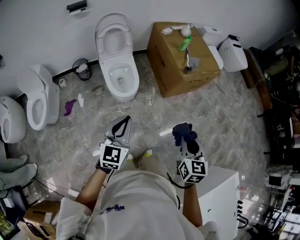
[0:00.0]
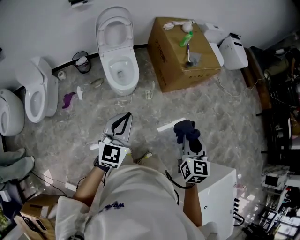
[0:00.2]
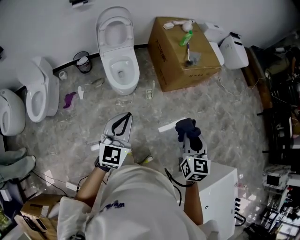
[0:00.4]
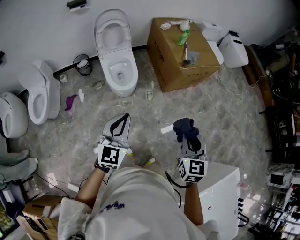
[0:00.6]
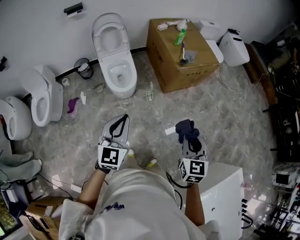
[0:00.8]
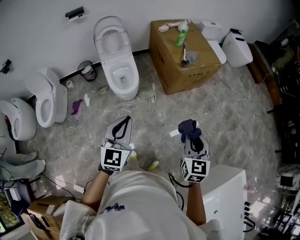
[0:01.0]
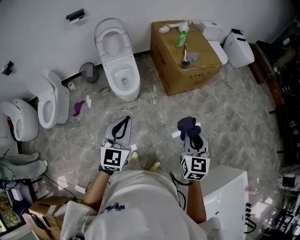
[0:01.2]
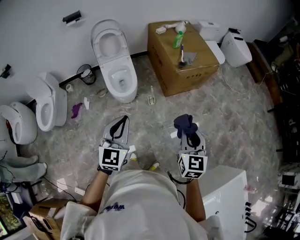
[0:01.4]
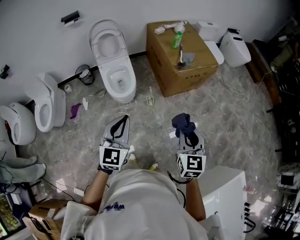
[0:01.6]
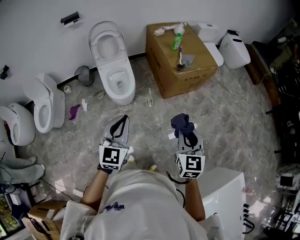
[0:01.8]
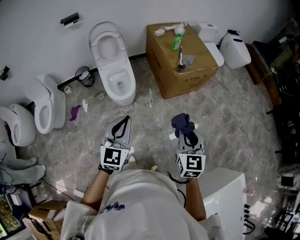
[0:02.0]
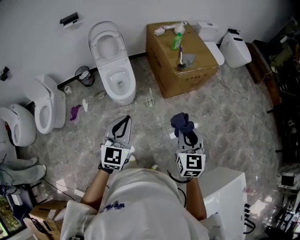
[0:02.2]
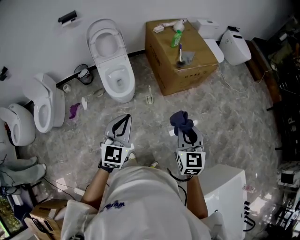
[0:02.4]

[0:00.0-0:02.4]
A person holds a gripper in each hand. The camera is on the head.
0:00.0 to 0:01.2: The two grippers go roughly 10 cm to the right.
0:01.2 to 0:02.4: The left gripper changes place by some 5 cm; the right gripper ends up approximately 5 cm from where it was.

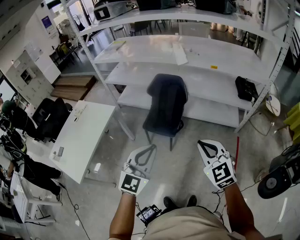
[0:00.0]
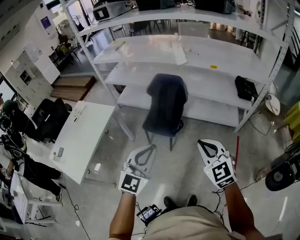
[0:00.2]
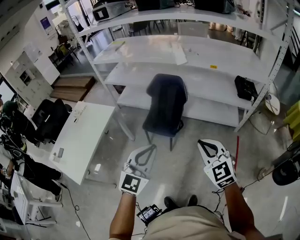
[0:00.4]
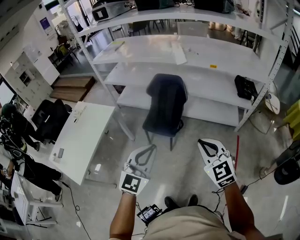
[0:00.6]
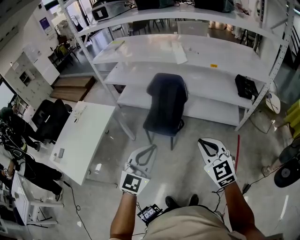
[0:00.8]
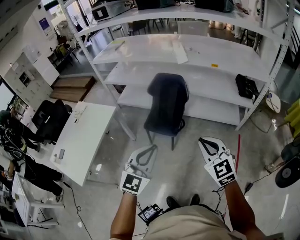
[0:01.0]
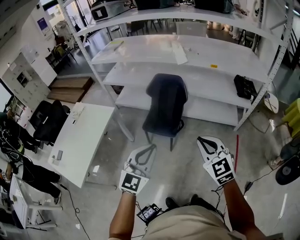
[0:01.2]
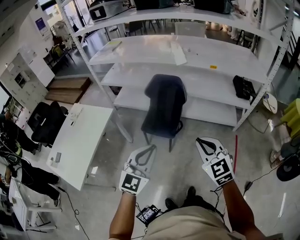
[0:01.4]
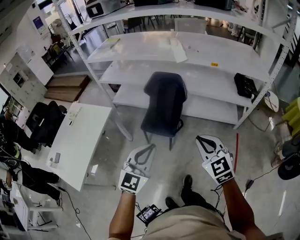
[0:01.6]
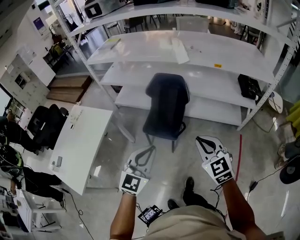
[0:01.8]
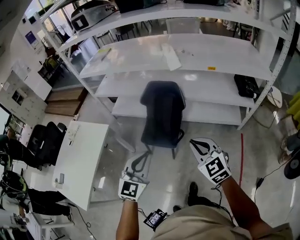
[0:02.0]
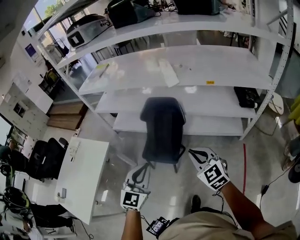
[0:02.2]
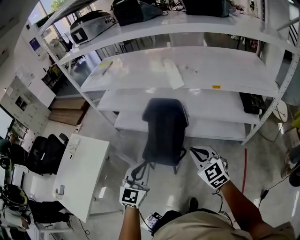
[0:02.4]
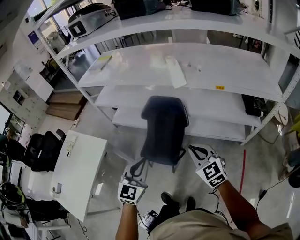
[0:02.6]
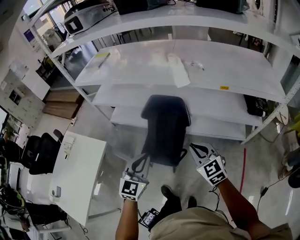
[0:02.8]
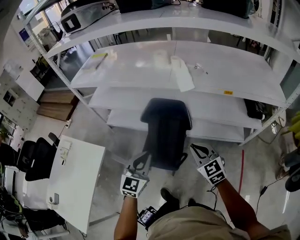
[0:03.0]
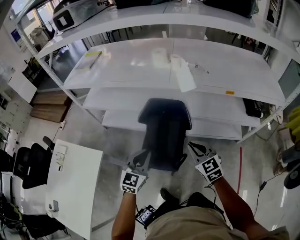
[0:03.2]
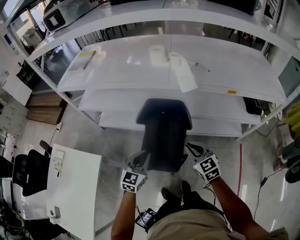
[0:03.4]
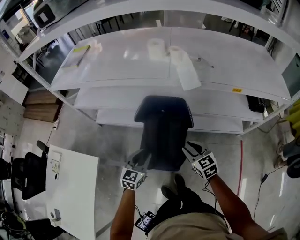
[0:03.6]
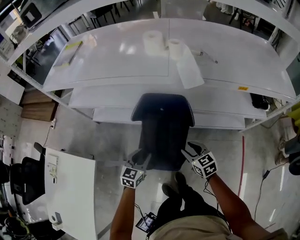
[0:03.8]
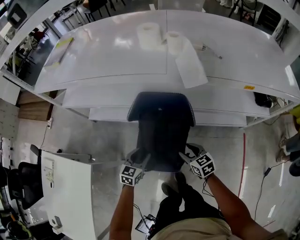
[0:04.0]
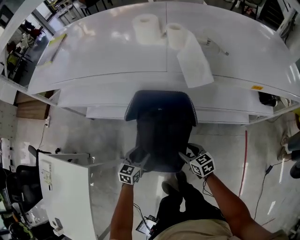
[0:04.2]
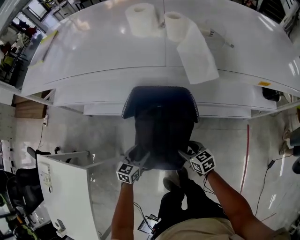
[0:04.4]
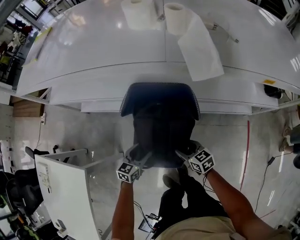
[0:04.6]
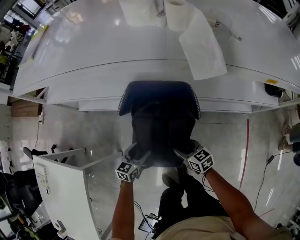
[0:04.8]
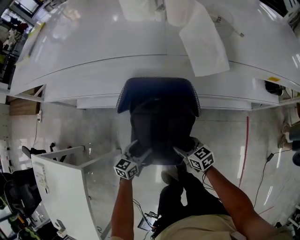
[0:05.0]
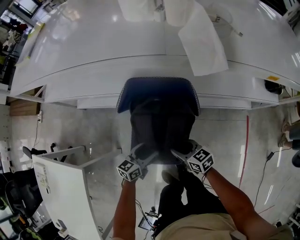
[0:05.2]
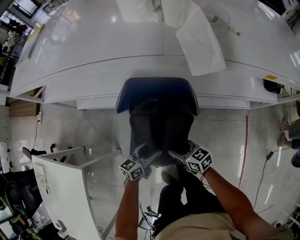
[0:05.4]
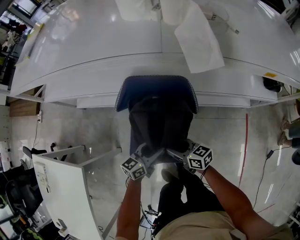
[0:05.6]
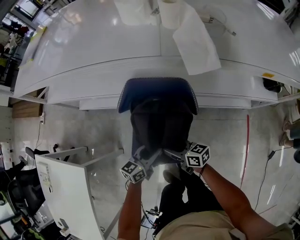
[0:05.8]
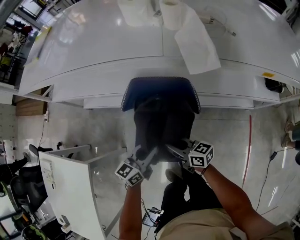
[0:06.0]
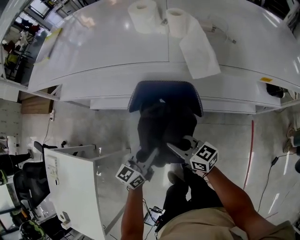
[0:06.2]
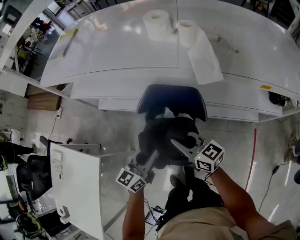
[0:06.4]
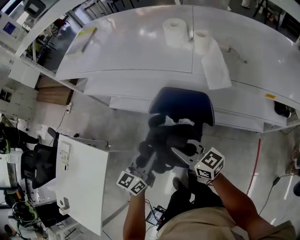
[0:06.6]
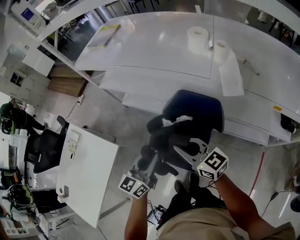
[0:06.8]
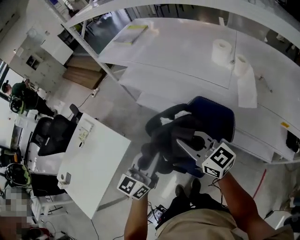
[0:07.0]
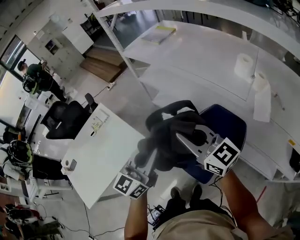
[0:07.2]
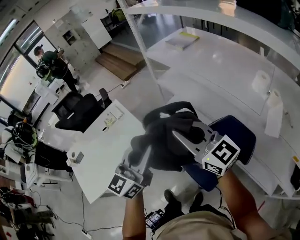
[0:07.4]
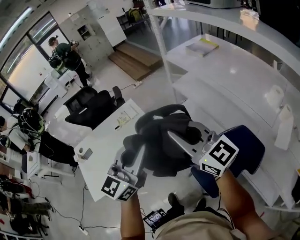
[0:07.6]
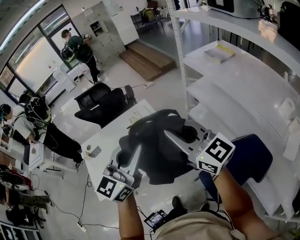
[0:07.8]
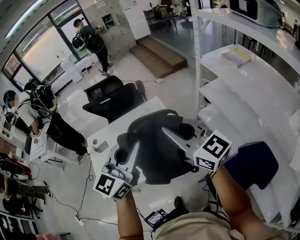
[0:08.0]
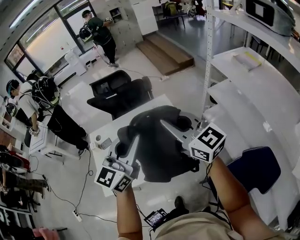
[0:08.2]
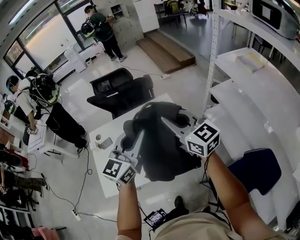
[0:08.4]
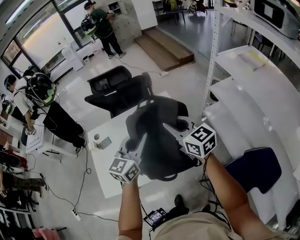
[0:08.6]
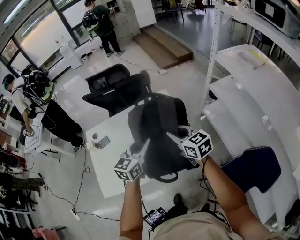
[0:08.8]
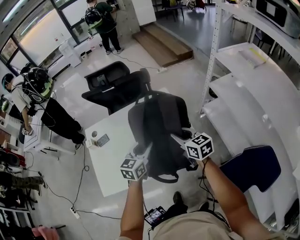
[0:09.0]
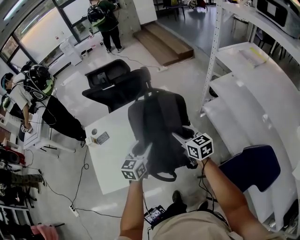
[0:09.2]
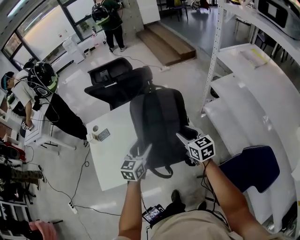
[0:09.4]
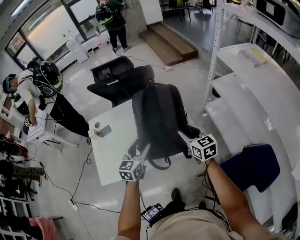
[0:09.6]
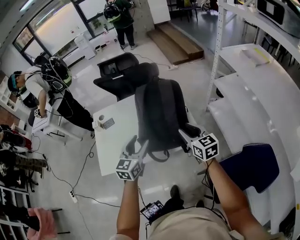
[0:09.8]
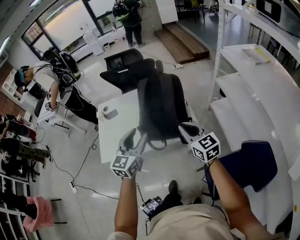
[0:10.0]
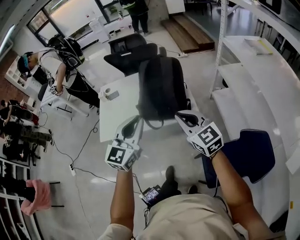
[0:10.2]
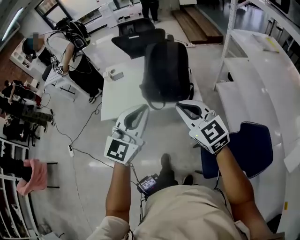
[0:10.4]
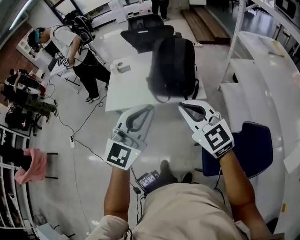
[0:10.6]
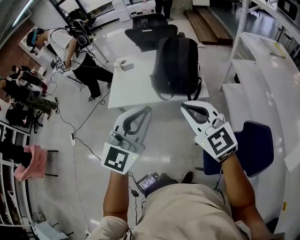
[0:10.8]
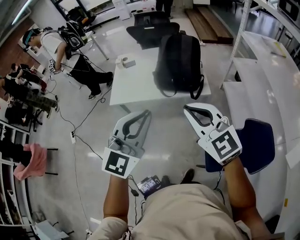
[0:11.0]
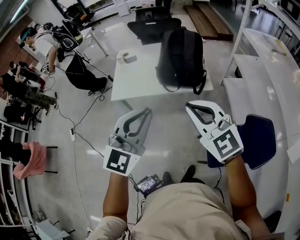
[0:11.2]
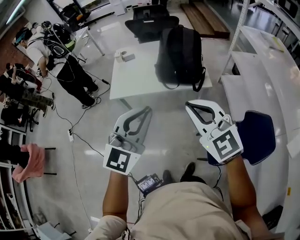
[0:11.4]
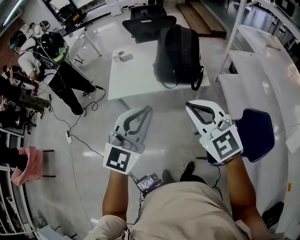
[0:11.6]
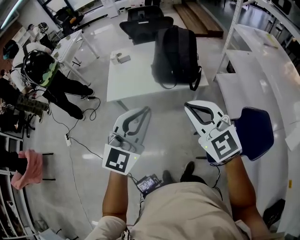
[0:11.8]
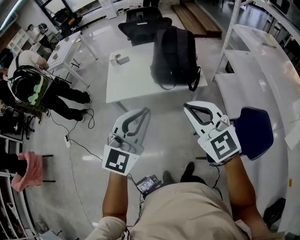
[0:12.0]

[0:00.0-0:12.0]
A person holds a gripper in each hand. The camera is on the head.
0:00.0 to 0:01.6: Both grippers move forward, roughly 5 cm.
0:01.6 to 0:03.0: The grippers both shift forward by about 35 cm.
0:03.0 to 0:04.4: The two grippers go some 40 cm downward and forward. The left gripper rotates about 30 degrees, and opens its fingers, while the right gripper rotates some 40 degrees, and opens.
0:04.4 to 0:06.0: The left gripper goes approximately 10 cm upward, rotates about 20 degrees, and closes; the right gripper heads to the left and upward, covering about 10 cm, swivels approximately 30 degrees, and closes its fingers.
0:06.0 to 0:07.6: The two grippers travel together, some 40 cm. Both grippers move upward, roughly 50 cm. The right gripper swivels approximately 60 degrees. The left gripper rotates roughly 70 degrees.
0:07.6 to 0:09.0: The right gripper moves downward, forward and to the left, about 40 cm, and turns by some 30 degrees. Meanwhile the left gripper is displaced downward, to the left and forward by approximately 40 cm, and swivels roughly 40 degrees.
0:09.0 to 0:10.4: Both grippers move backward and upward, roughly 40 cm. The left gripper swivels roughly 40 degrees, and opens, then closes once more, while the right gripper turns by roughly 40 degrees.
0:10.4 to 0:12.0: Both grippers move backward and to the left, roughly 15 cm.

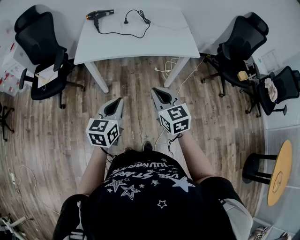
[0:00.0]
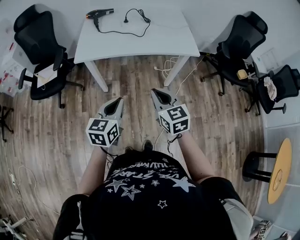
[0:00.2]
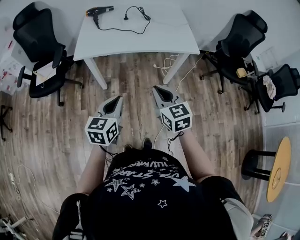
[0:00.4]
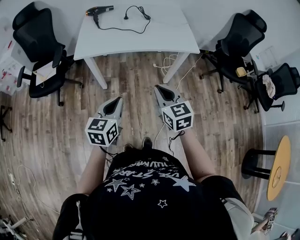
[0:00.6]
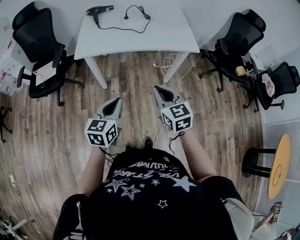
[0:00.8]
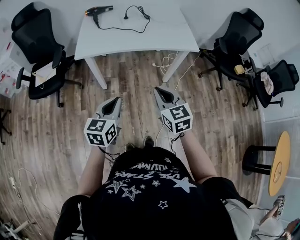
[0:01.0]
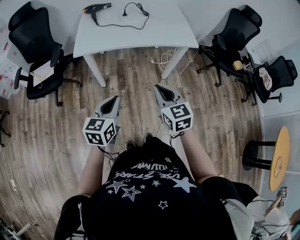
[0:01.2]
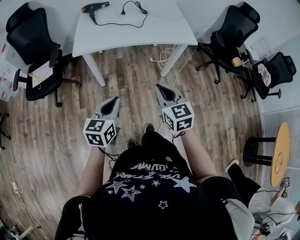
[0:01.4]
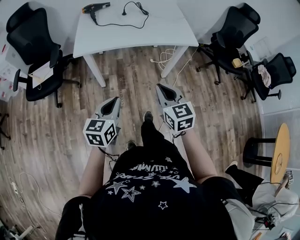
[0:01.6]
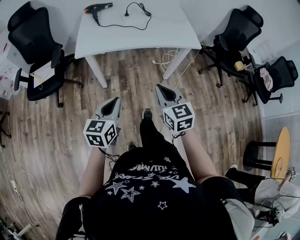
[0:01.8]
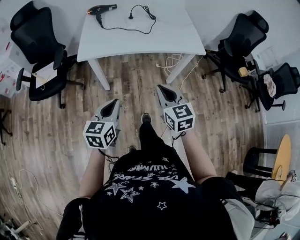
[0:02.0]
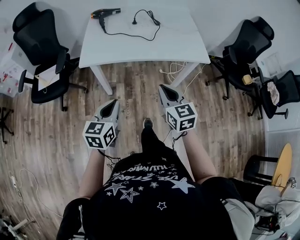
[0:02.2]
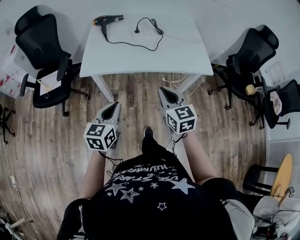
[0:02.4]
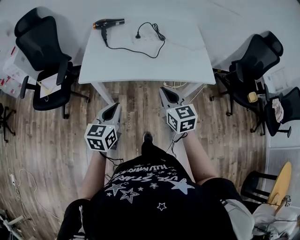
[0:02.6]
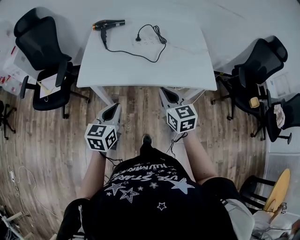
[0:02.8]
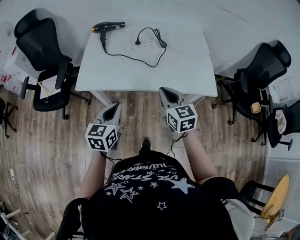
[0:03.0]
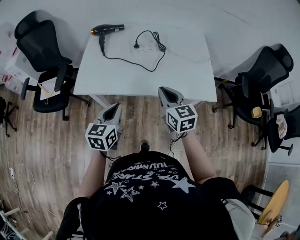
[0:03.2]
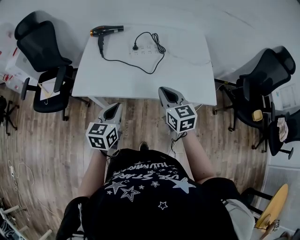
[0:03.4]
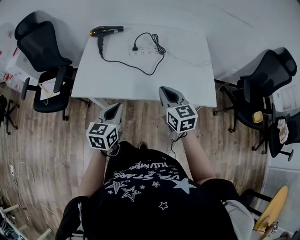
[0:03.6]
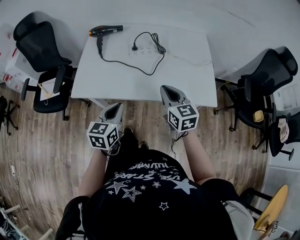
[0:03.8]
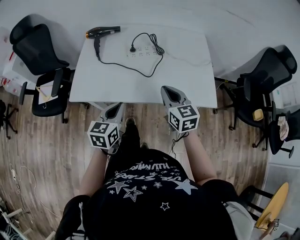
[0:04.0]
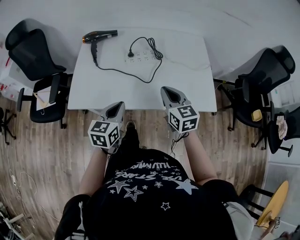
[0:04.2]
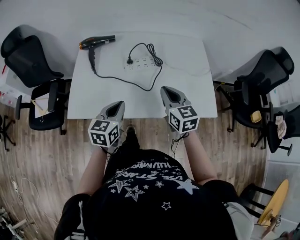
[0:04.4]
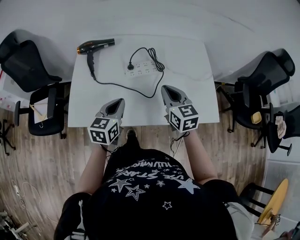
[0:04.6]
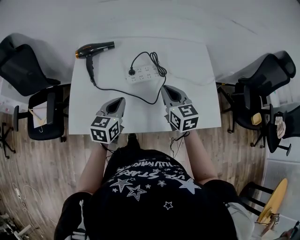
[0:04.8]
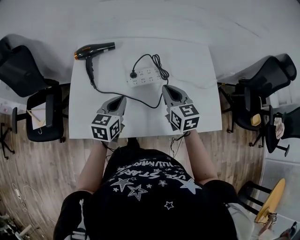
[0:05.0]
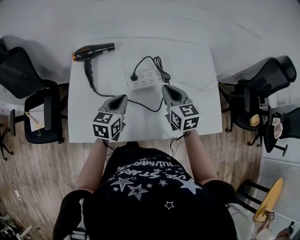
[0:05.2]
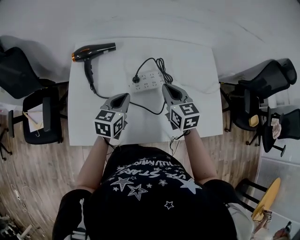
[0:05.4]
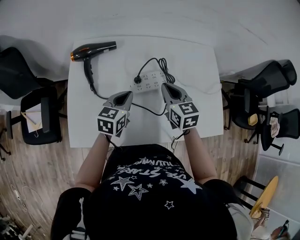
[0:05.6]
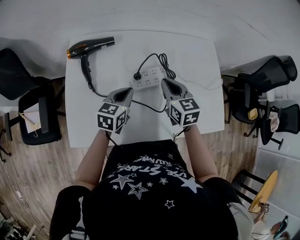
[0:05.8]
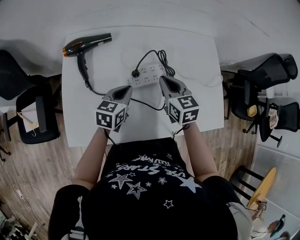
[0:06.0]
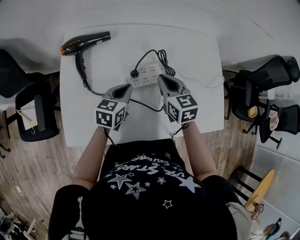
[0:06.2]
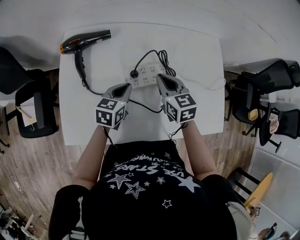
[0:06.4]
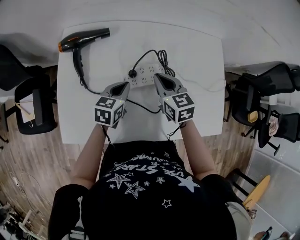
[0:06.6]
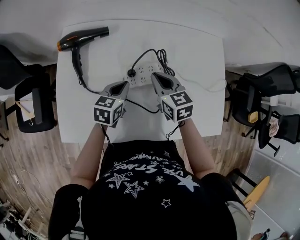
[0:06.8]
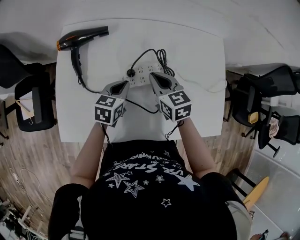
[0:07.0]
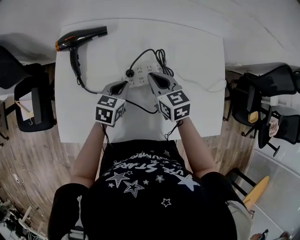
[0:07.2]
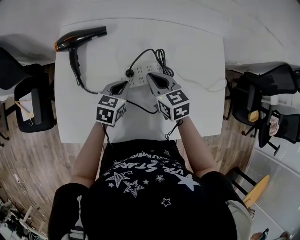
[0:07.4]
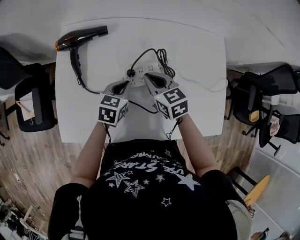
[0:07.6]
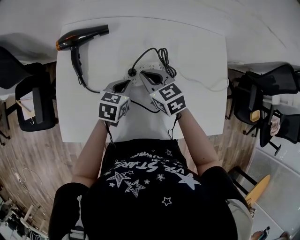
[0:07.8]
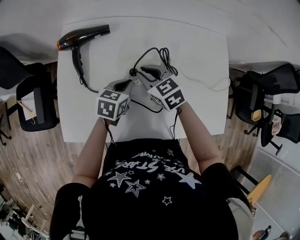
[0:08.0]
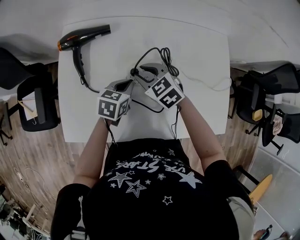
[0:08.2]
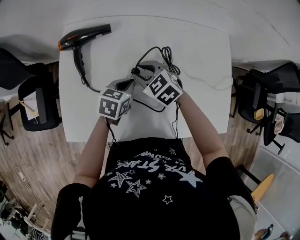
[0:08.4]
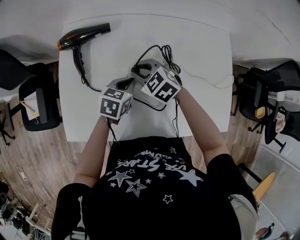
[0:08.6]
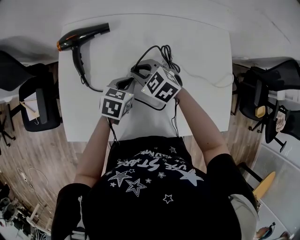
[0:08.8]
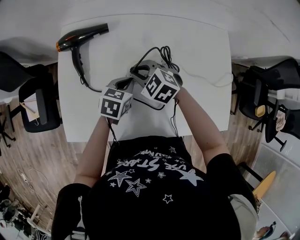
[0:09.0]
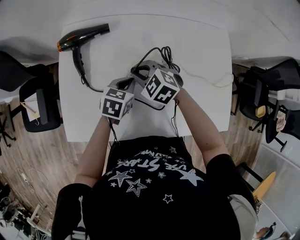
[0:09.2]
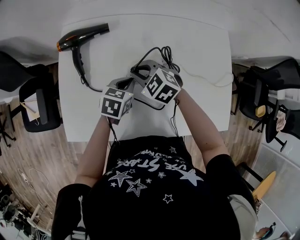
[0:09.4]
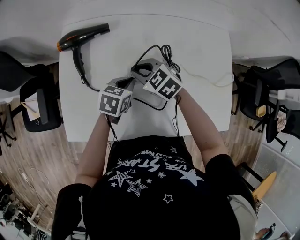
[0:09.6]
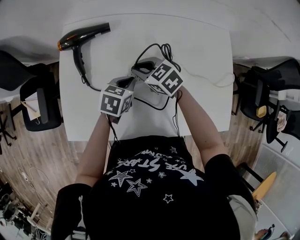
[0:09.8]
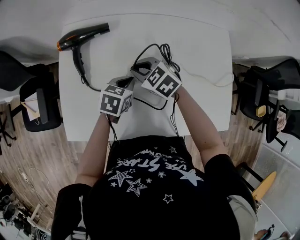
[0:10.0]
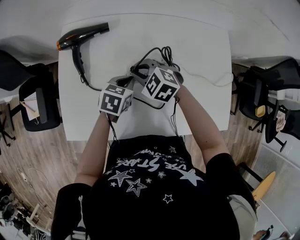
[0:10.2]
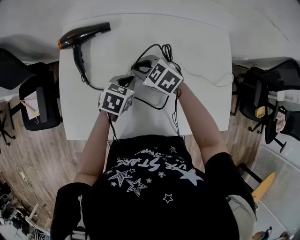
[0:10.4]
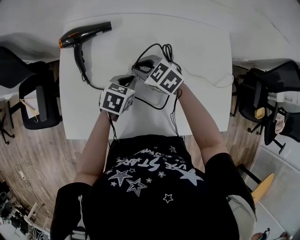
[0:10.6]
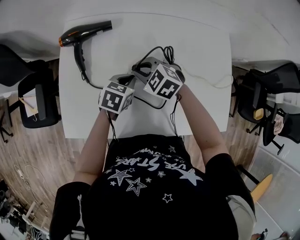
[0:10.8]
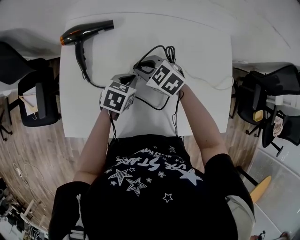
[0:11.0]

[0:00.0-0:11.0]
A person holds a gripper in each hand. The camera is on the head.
0:00.0 to 0:01.6: The right gripper shifts by roughly 5 cm, while the left gripper heads to the left, covering about 5 cm.
0:01.6 to 0:03.2: The two grippers go about 30 cm forward.
0:03.2 to 0:04.8: Both grippers travel together forward, approximately 25 cm.
0:04.8 to 0:06.2: The right gripper heads forward, downward and to the left, covering roughly 15 cm; the left gripper is displaced forward and downward by about 15 cm.
0:06.2 to 0:07.8: The right gripper is displaced to the left by about 5 cm, and changes its angle by approximately 20 degrees.
0:07.8 to 0:09.4: The right gripper changes its angle by roughly 30 degrees.
0:09.4 to 0:11.0: There are only small adjustments of the grippers.
